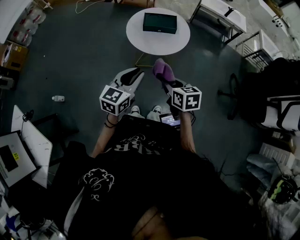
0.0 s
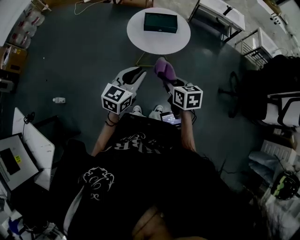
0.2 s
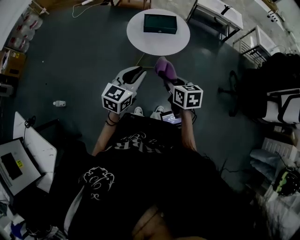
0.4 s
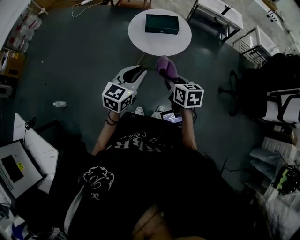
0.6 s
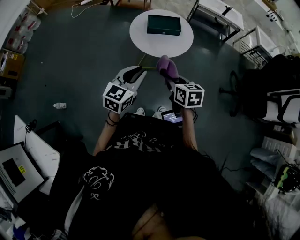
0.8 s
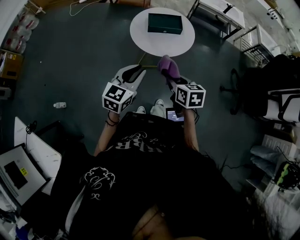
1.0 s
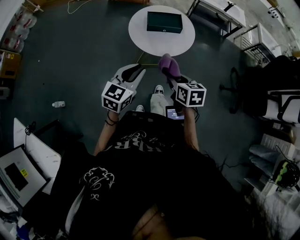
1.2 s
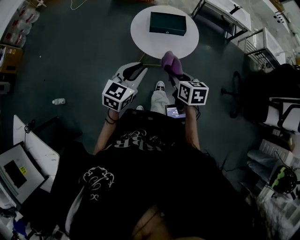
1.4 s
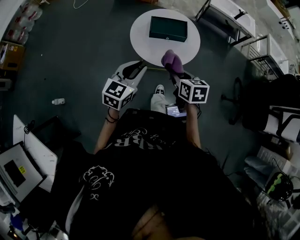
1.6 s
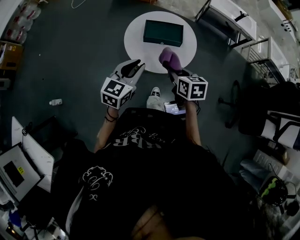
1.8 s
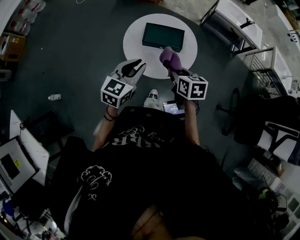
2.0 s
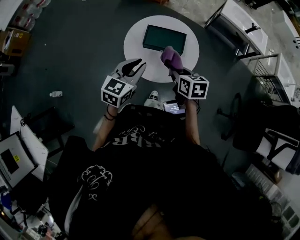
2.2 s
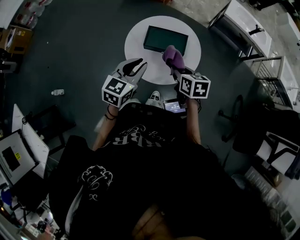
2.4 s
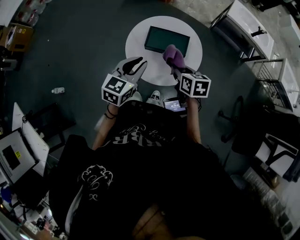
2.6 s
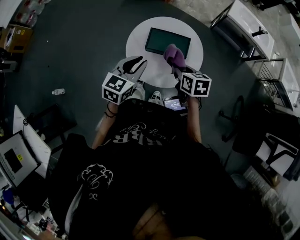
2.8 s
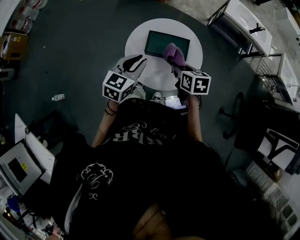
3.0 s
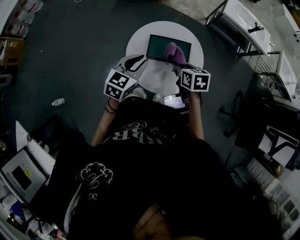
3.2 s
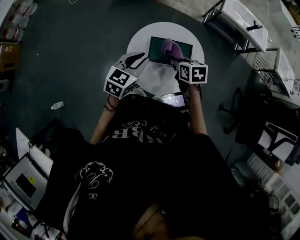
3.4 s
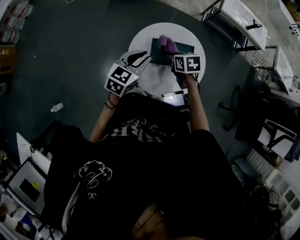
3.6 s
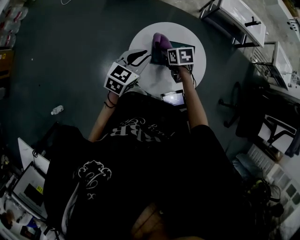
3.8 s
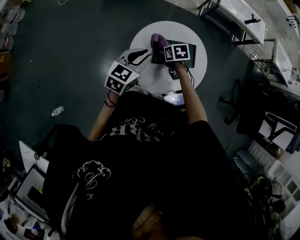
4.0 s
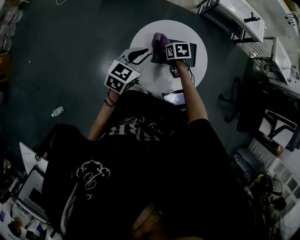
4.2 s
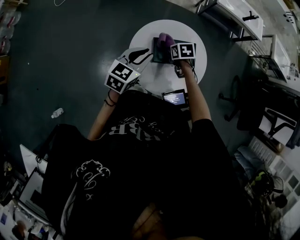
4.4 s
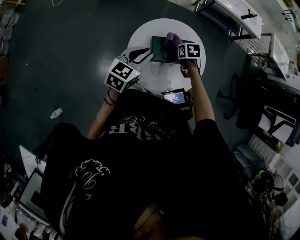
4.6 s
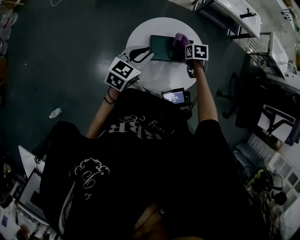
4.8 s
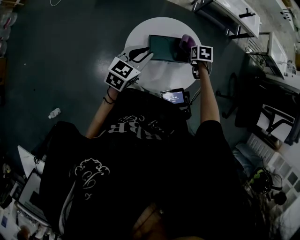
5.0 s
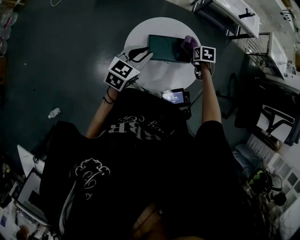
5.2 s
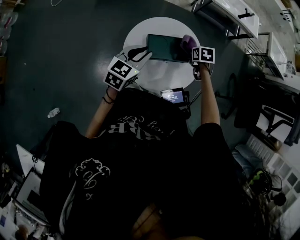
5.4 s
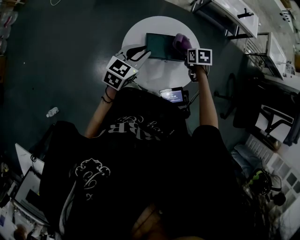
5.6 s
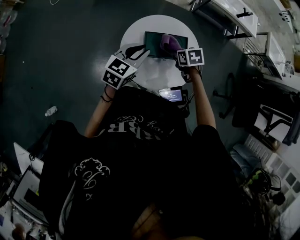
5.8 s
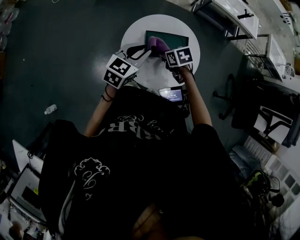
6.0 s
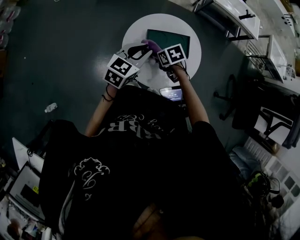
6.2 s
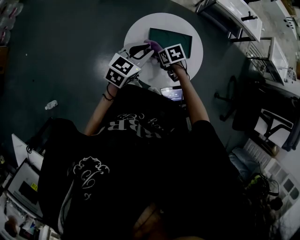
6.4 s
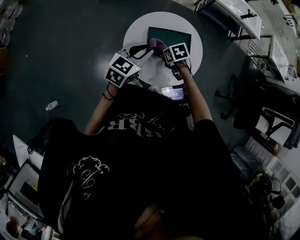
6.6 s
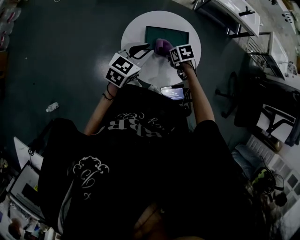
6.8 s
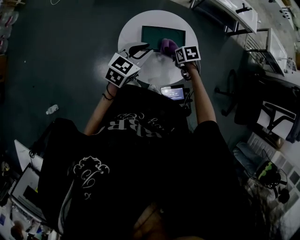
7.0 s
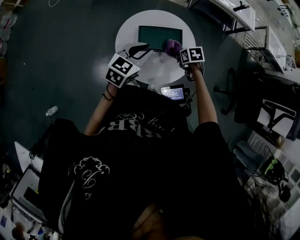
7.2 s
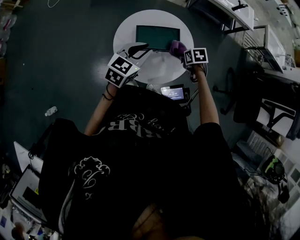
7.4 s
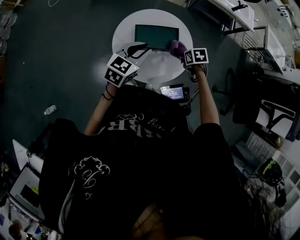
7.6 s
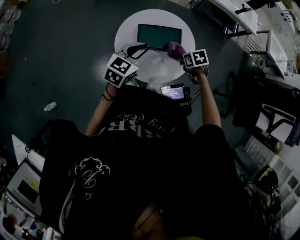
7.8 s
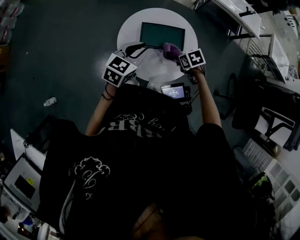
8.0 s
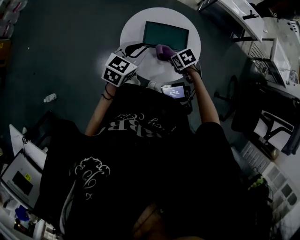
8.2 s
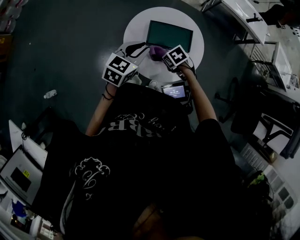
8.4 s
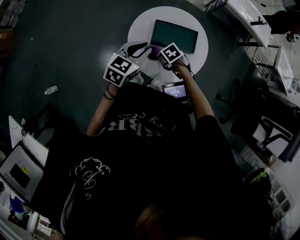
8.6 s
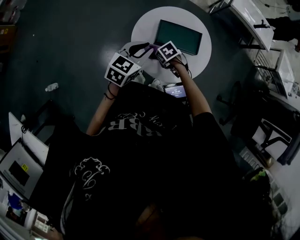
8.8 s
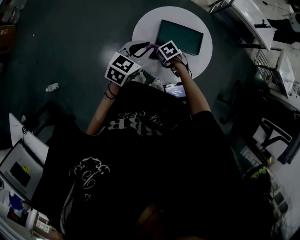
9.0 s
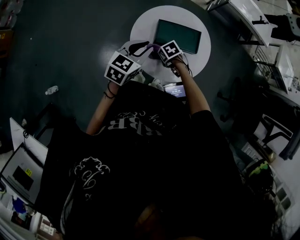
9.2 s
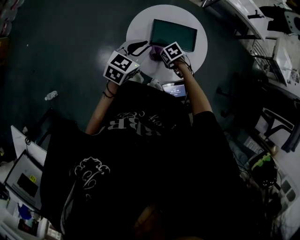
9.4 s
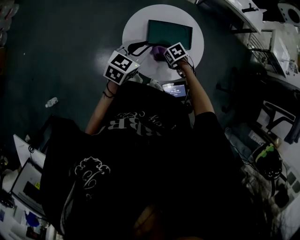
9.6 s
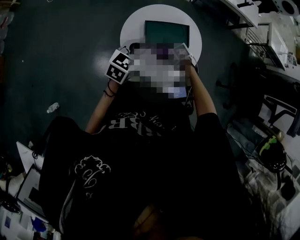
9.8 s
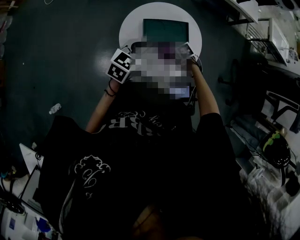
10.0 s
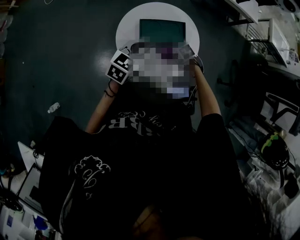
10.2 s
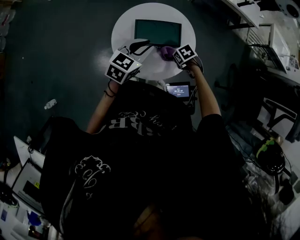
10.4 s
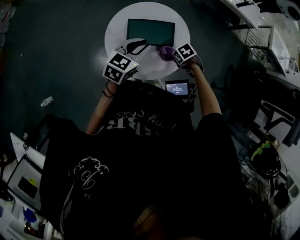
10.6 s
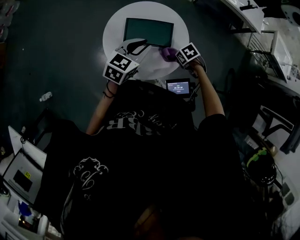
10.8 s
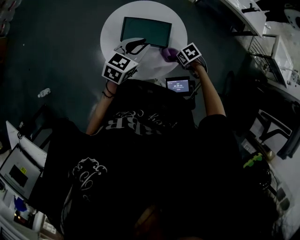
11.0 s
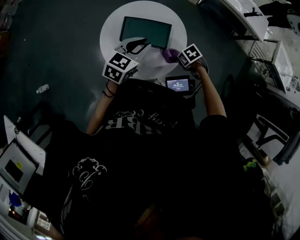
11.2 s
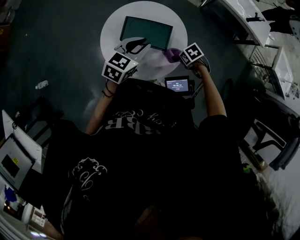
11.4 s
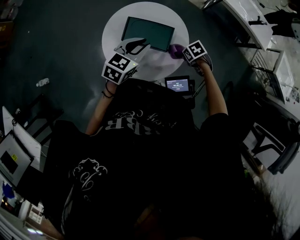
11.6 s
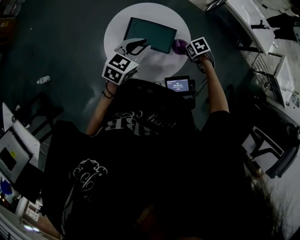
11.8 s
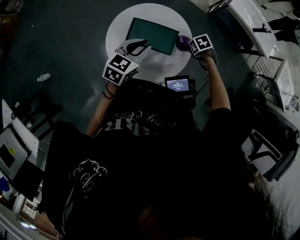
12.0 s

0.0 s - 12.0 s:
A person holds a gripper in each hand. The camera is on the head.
0.0 s - 1.6 s: Both grippers move forward, some 15 cm.
1.6 s - 3.0 s: The grippers both shift forward by some 20 cm.
3.0 s - 4.4 s: The left gripper travels forward and to the left by some 10 cm, while the right gripper shifts some 20 cm forward, downward and to the left, and swivels some 20 degrees.
6.0 s - 7.6 s: The right gripper goes approximately 15 cm to the right; the left gripper shifts by roughly 5 cm.
7.6 s - 9.0 s: The left gripper shifts by some 10 cm. The right gripper moves about 25 cm, and changes its angle by some 30 degrees.
9.0 s - 10.4 s: The left gripper shifts by about 10 cm. Meanwhile the right gripper ends up about 20 cm from where it was.
10.4 s - 12.0 s: The left gripper changes place by roughly 5 cm. Meanwhile the right gripper shifts by approximately 20 cm.

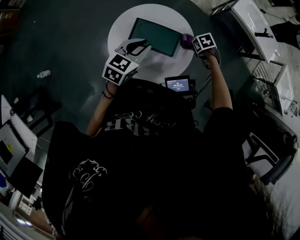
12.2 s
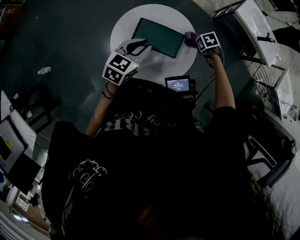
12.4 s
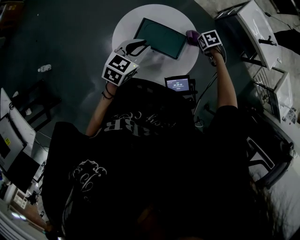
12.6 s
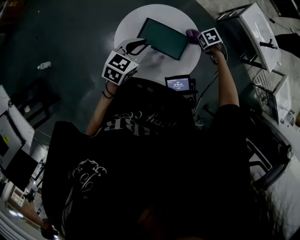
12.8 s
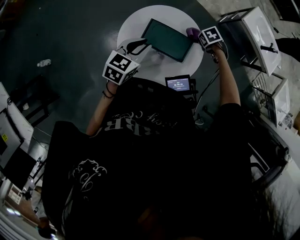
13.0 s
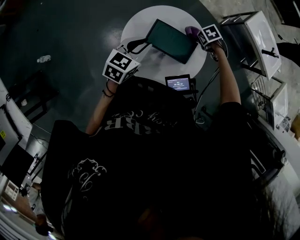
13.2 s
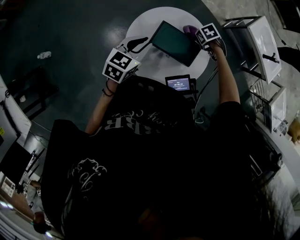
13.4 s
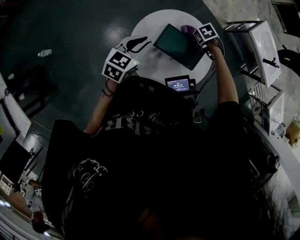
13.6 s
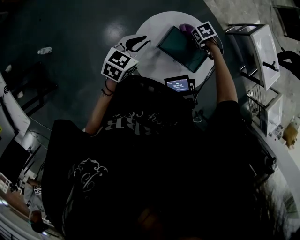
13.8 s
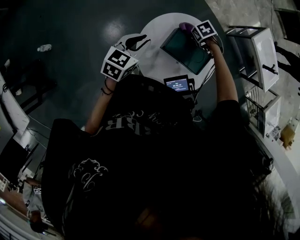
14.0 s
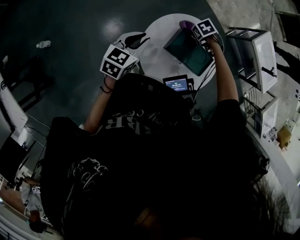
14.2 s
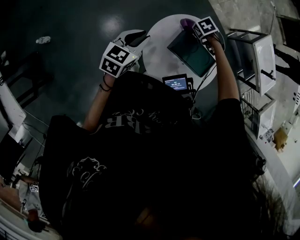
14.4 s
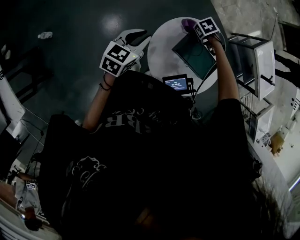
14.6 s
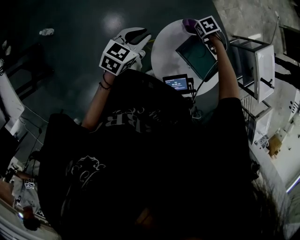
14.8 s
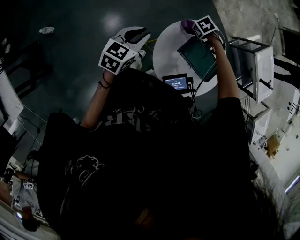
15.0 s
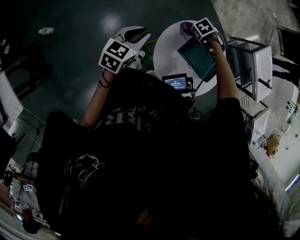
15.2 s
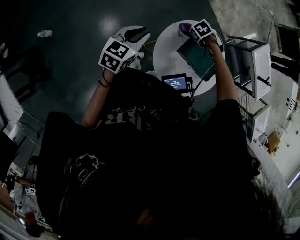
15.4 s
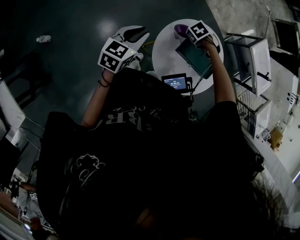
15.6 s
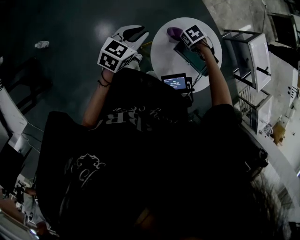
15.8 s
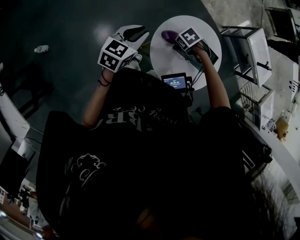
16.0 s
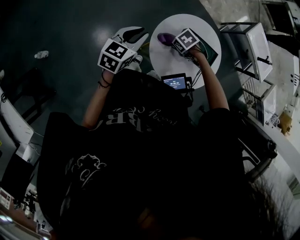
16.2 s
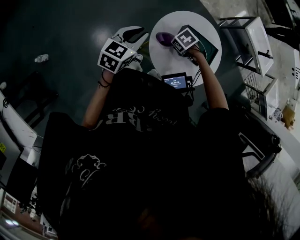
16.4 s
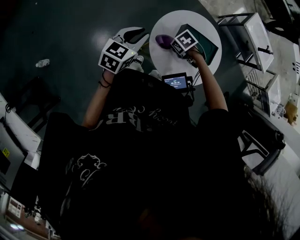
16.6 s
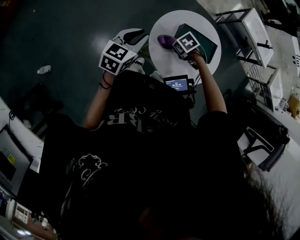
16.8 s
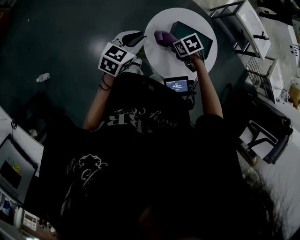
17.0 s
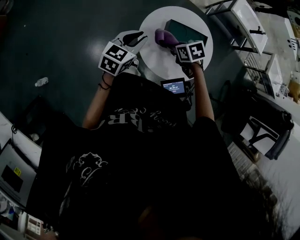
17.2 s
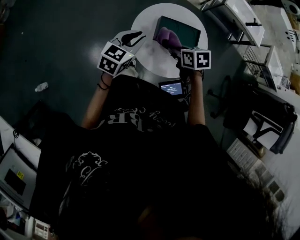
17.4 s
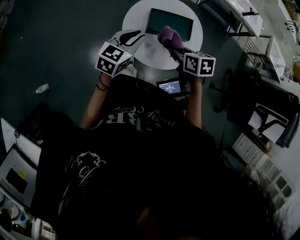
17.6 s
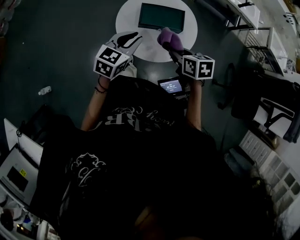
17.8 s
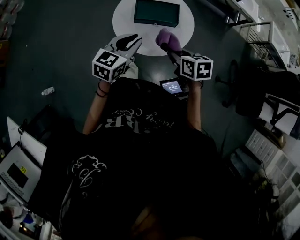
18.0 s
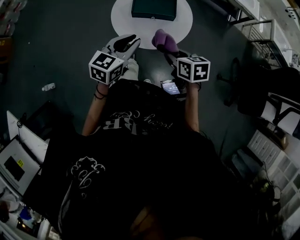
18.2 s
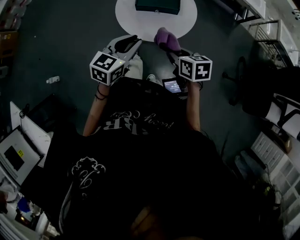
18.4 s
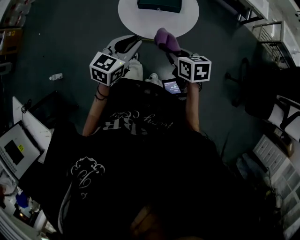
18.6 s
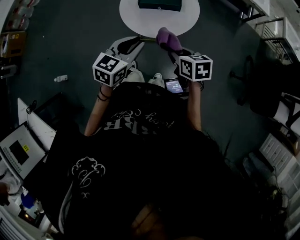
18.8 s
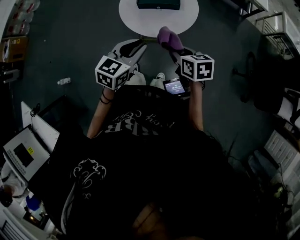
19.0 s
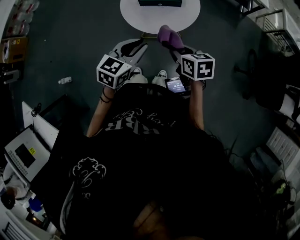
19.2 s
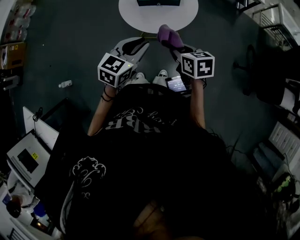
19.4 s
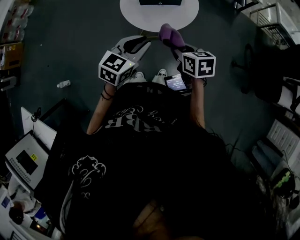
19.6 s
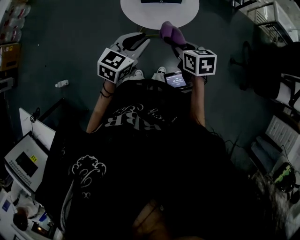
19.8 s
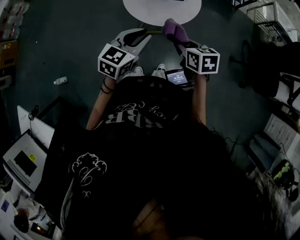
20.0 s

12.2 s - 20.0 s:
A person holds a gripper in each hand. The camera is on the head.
12.2 s - 13.8 s: The right gripper moves approximately 25 cm, and changes its angle by about 20 degrees, while the left gripper moves about 20 cm.
13.8 s - 15.4 s: The right gripper moves about 15 cm. The left gripper changes place by some 15 cm.
15.4 s - 16.8 s: The right gripper moves approximately 15 cm, and swivels roughly 20 degrees.
16.8 s - 18.4 s: The right gripper changes place by about 35 cm, and tips its fingers upward by some 40 degrees. The left gripper ends up some 35 cm from where it was.
18.4 s - 20.0 s: The right gripper travels backward and to the left by about 10 cm. The left gripper is displaced backward by roughly 10 cm.

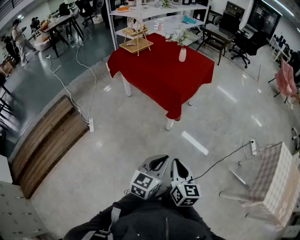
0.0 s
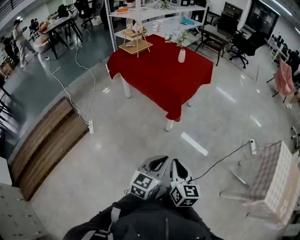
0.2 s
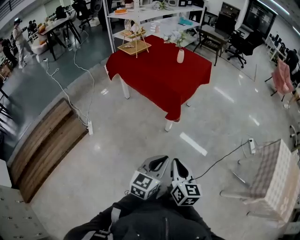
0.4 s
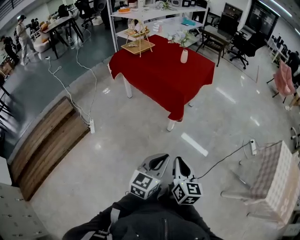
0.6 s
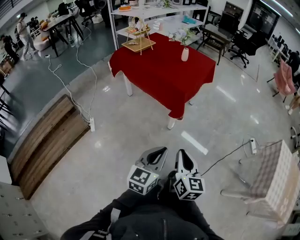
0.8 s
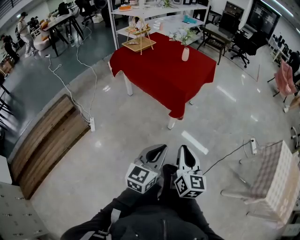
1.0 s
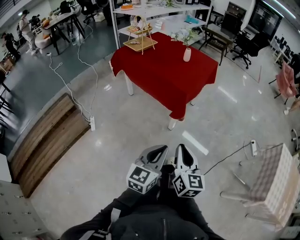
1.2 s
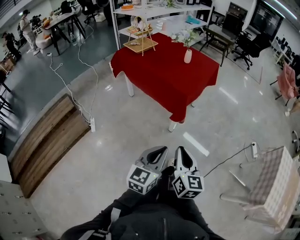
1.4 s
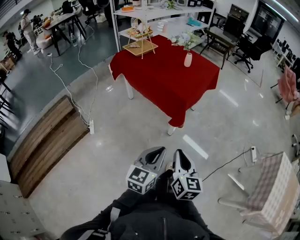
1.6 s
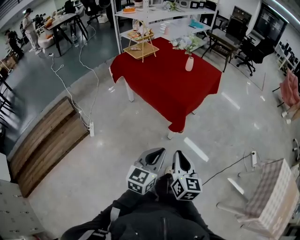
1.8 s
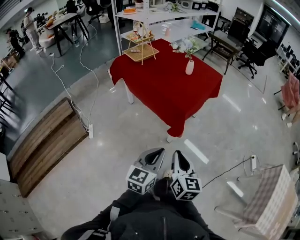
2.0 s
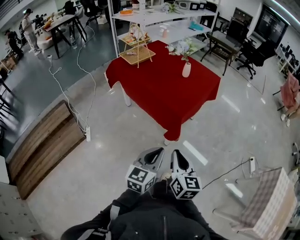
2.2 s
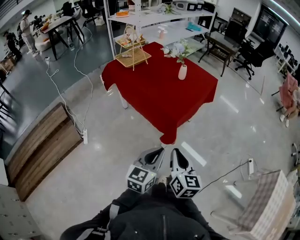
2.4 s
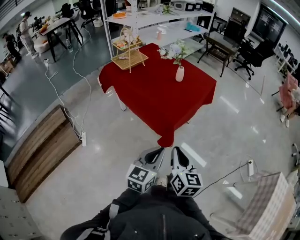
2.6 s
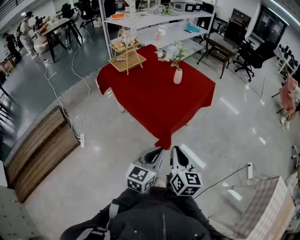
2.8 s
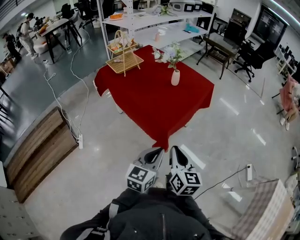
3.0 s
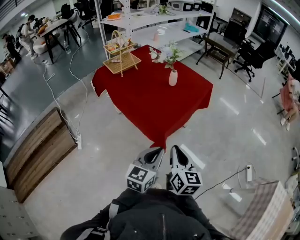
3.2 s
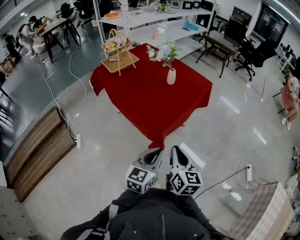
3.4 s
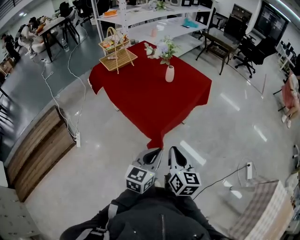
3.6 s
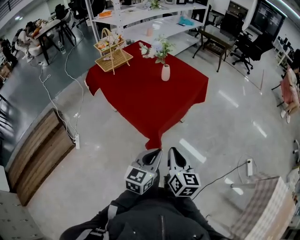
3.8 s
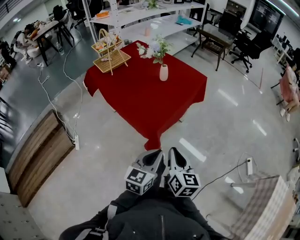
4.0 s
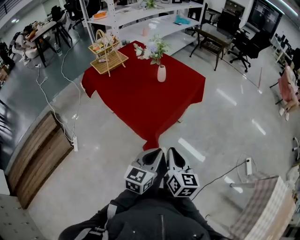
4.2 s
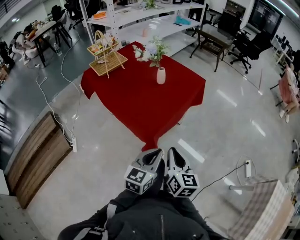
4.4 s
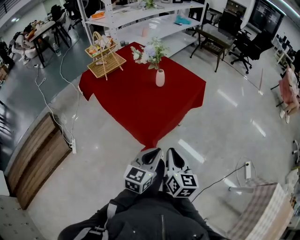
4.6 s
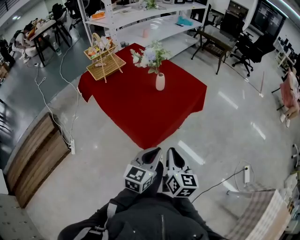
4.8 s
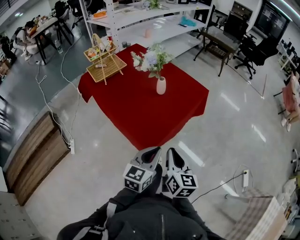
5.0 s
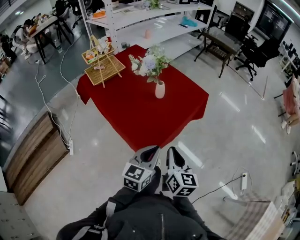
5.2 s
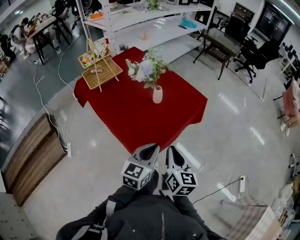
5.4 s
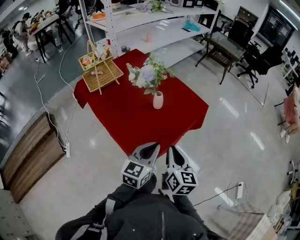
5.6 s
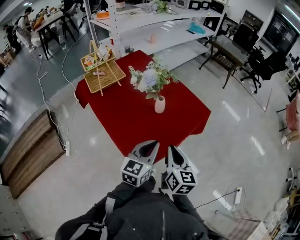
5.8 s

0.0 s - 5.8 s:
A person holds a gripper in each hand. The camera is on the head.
0.0 s - 1.4 s: The left gripper goes roughly 5 cm to the left. The right gripper heads forward, covering approximately 5 cm.
1.4 s - 2.8 s: Both grippers move forward, about 25 cm.
2.8 s - 4.4 s: Both grippers travel together forward and to the right, approximately 10 cm.
4.4 s - 5.8 s: The grippers both shift forward by roughly 25 cm.
